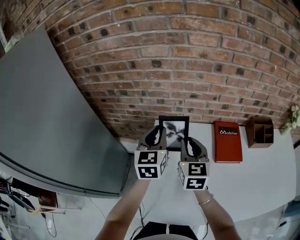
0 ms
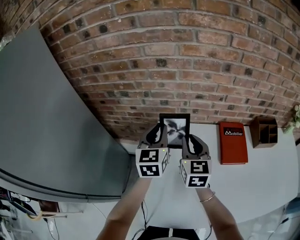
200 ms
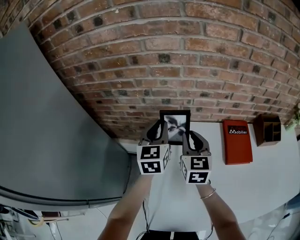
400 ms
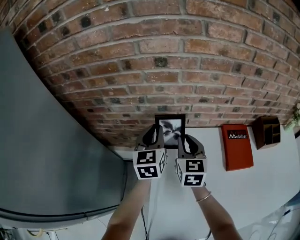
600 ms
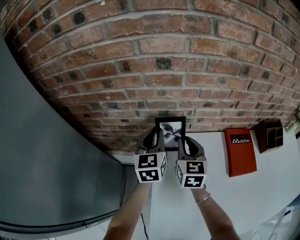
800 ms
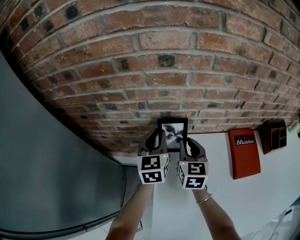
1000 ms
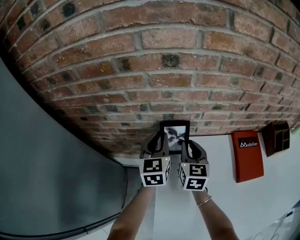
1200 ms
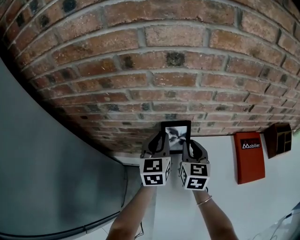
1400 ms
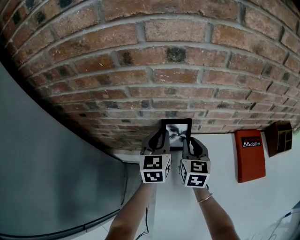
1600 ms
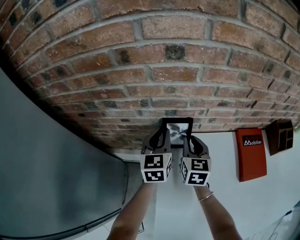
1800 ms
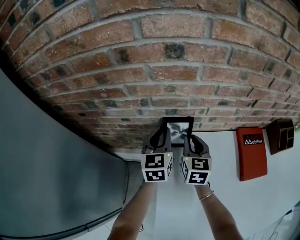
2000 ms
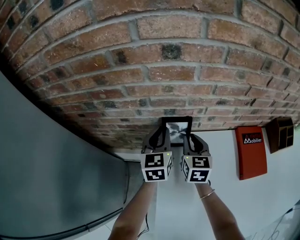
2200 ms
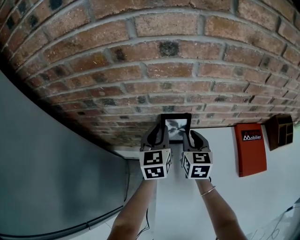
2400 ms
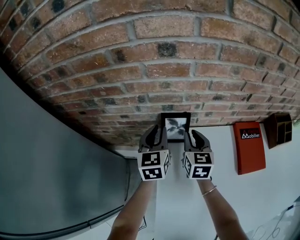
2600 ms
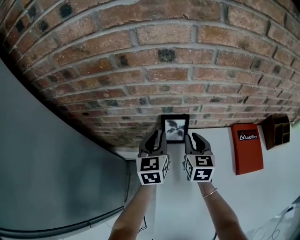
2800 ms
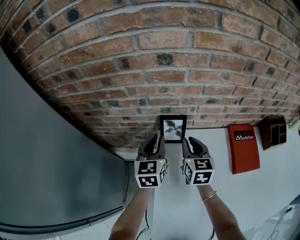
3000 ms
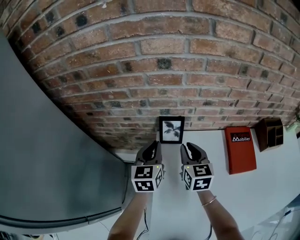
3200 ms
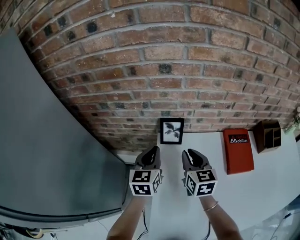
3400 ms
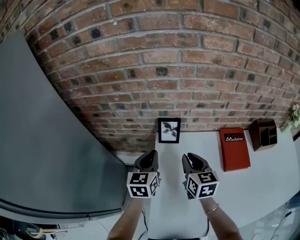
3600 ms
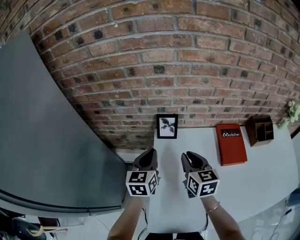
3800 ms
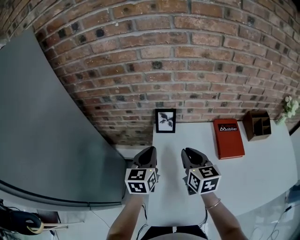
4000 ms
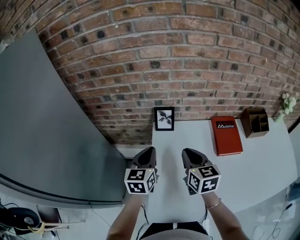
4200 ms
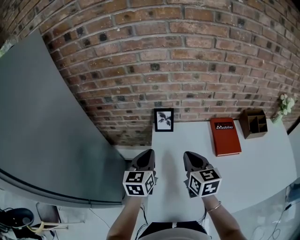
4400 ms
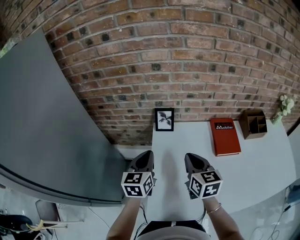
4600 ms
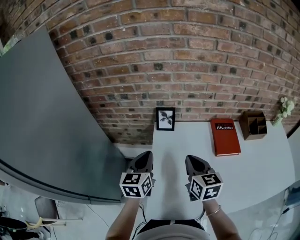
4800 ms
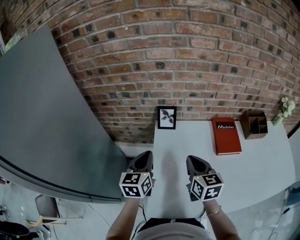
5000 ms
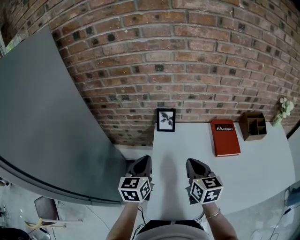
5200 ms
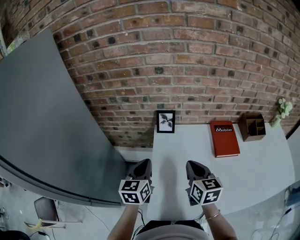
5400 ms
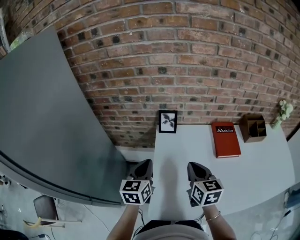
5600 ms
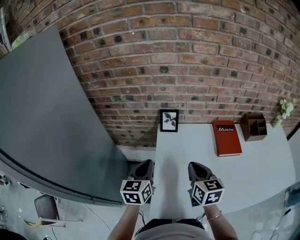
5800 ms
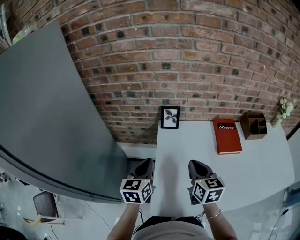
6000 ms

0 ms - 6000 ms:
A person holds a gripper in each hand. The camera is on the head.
0 ms - 1600 ms: The grippers both shift forward and downward by about 25 cm.
1600 ms - 3000 ms: The right gripper shifts by about 5 cm. Meanwhile the left gripper heads backward, covering roughly 5 cm.
3000 ms - 4400 ms: The left gripper heads backward, covering approximately 20 cm. The right gripper is displaced backward and upward by roughly 20 cm.
4400 ms - 6000 ms: The grippers both shift backward by some 5 cm.

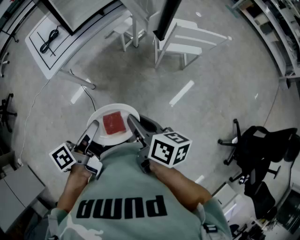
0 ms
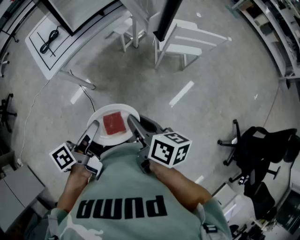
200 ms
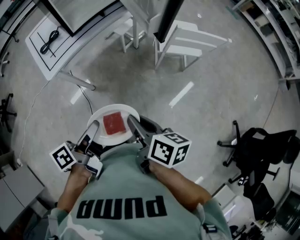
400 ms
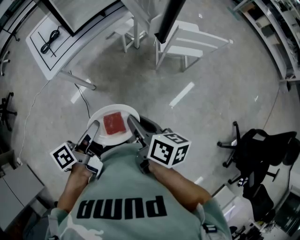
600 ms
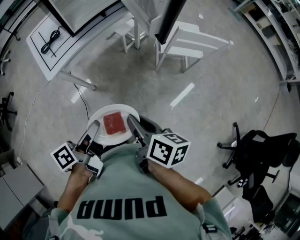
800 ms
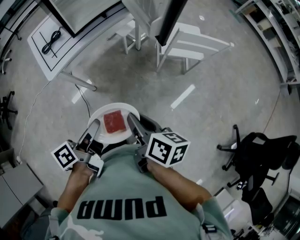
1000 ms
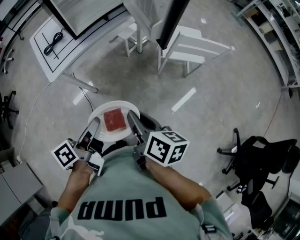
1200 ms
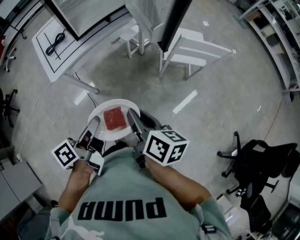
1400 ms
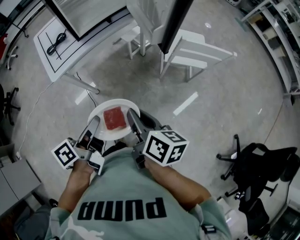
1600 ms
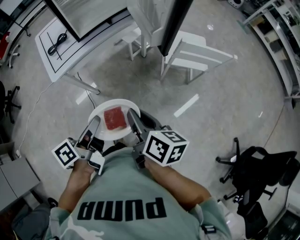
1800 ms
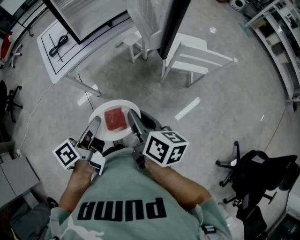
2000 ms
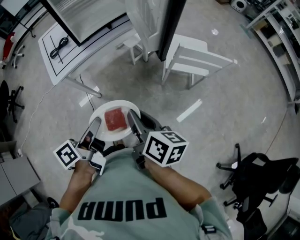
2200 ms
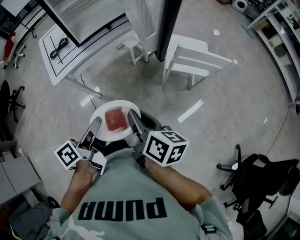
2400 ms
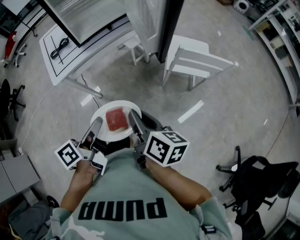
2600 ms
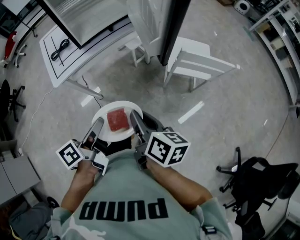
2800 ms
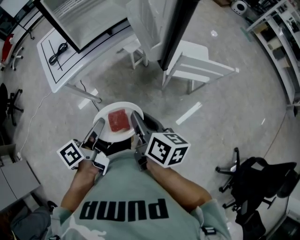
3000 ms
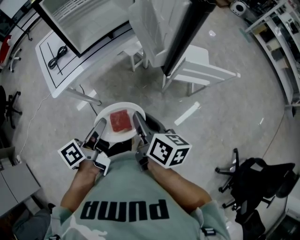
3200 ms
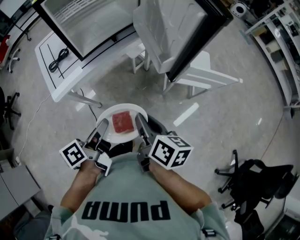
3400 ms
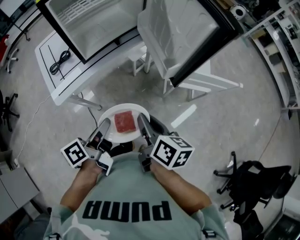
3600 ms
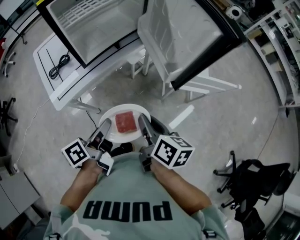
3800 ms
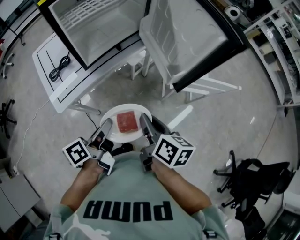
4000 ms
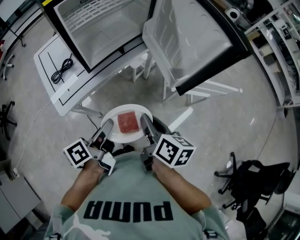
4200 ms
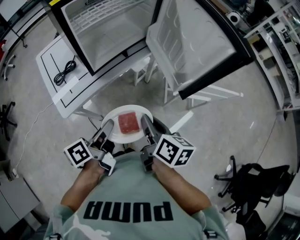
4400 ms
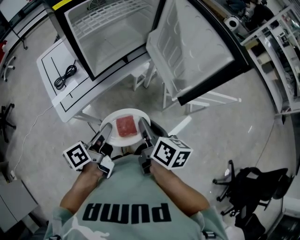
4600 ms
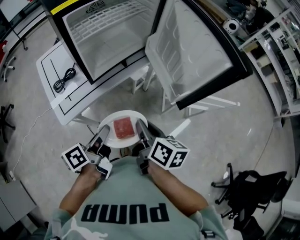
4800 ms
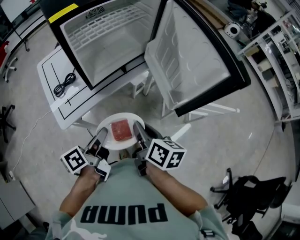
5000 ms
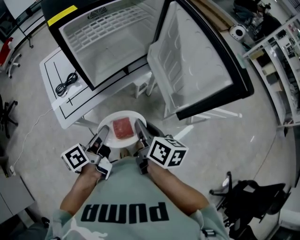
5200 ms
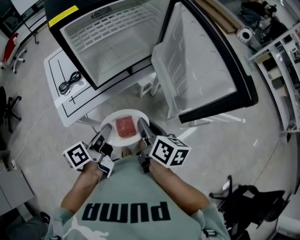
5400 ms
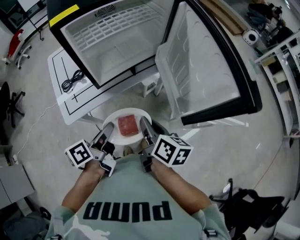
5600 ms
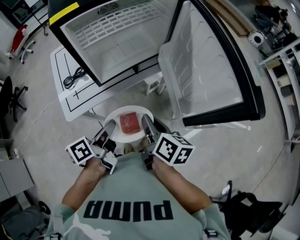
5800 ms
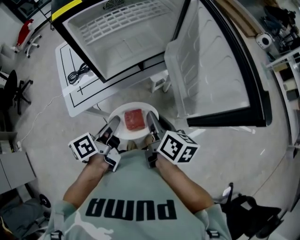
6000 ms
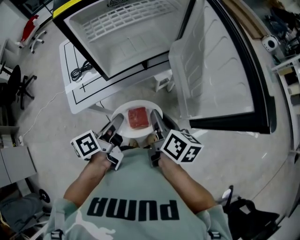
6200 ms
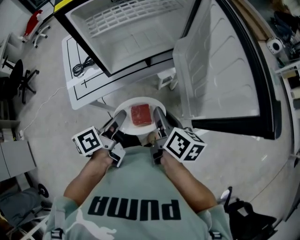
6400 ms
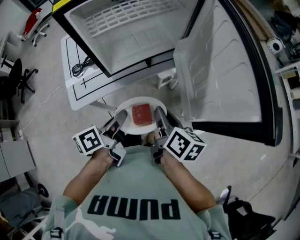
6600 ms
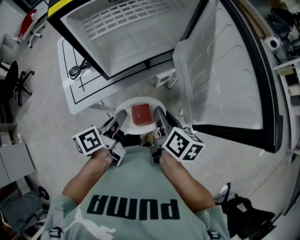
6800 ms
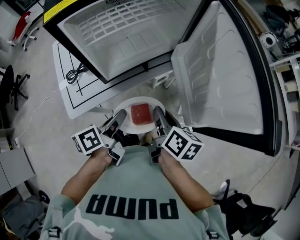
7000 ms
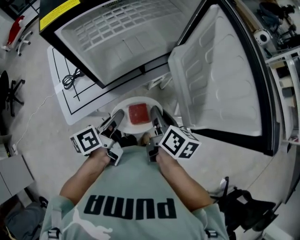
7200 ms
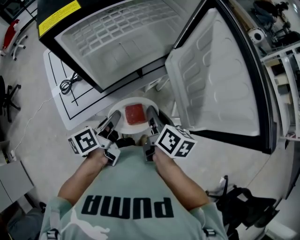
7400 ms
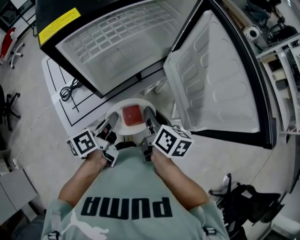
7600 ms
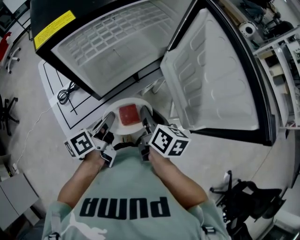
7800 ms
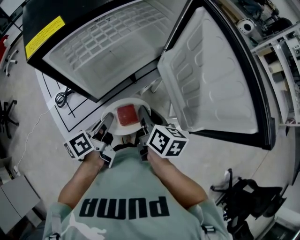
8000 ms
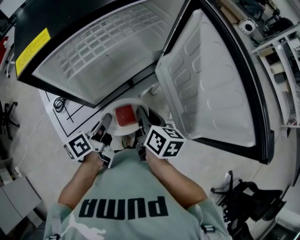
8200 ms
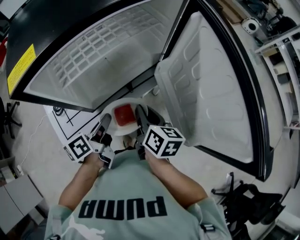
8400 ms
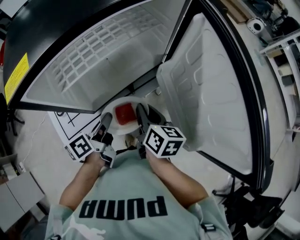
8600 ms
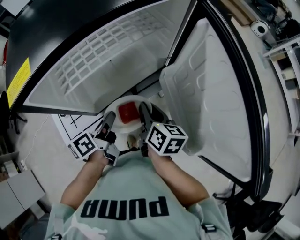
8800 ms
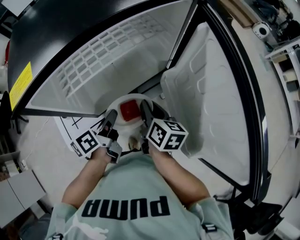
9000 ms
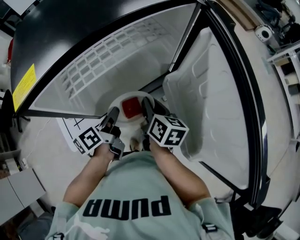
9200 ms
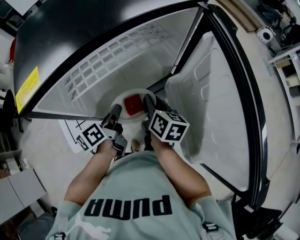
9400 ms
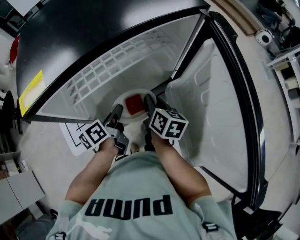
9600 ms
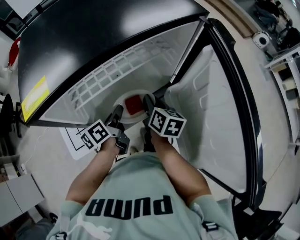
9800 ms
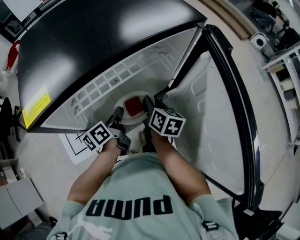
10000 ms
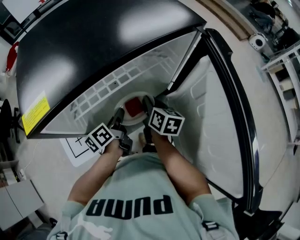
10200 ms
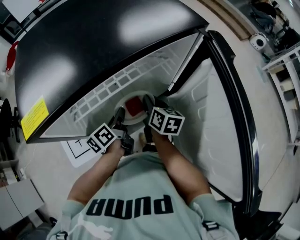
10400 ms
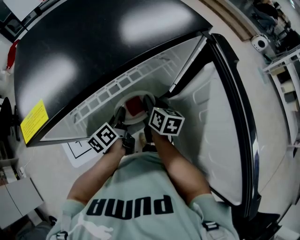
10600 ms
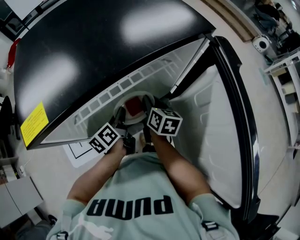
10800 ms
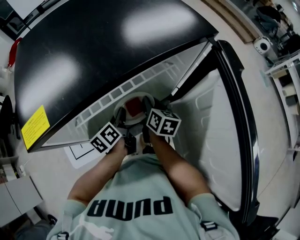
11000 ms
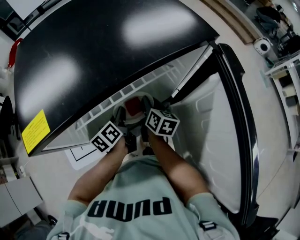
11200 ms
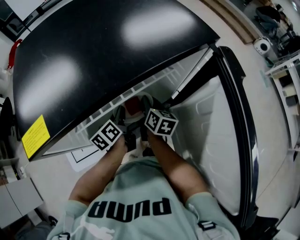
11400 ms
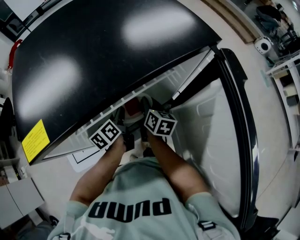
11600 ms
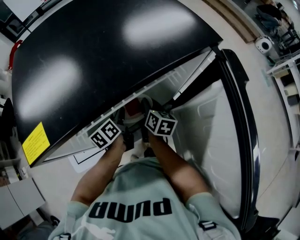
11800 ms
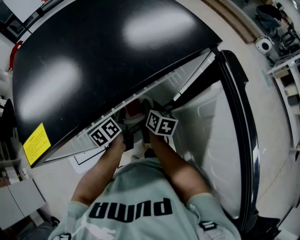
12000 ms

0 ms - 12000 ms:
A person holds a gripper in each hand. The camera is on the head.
0 ms - 1600 ms: The right gripper goes approximately 5 cm forward; the left gripper ends up about 5 cm from where it was.
1600 ms - 3000 ms: The two grippers go approximately 5 cm forward.
3000 ms - 4400 ms: Both grippers move forward and to the left, roughly 15 cm.
4400 ms - 6000 ms: The two grippers go roughly 10 cm forward.
6000 ms - 7600 ms: The right gripper moves forward, some 10 cm, while the left gripper shifts some 10 cm forward and to the left.
7600 ms - 9000 ms: Both grippers move forward, approximately 10 cm.
9000 ms - 10400 ms: Both grippers travel together forward, some 10 cm.
10400 ms - 12000 ms: The right gripper moves approximately 5 cm. The left gripper heads forward, covering about 5 cm.

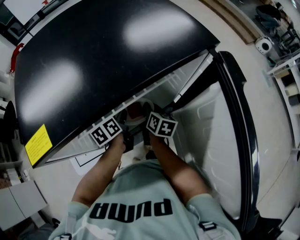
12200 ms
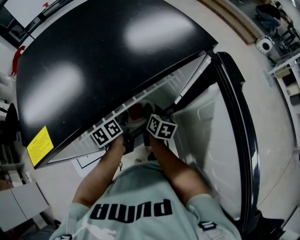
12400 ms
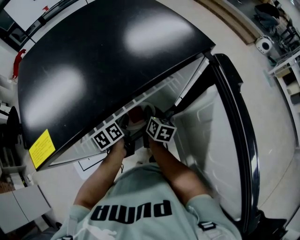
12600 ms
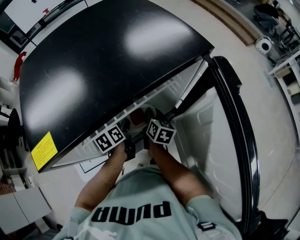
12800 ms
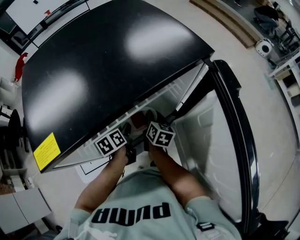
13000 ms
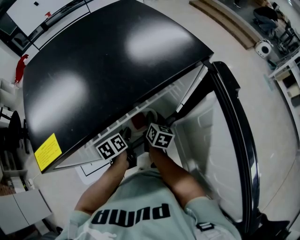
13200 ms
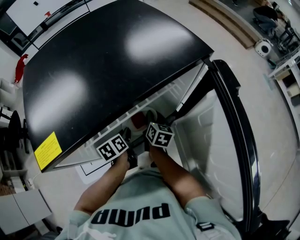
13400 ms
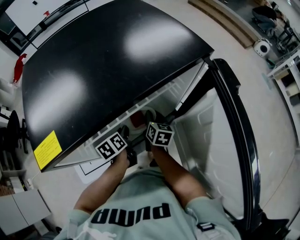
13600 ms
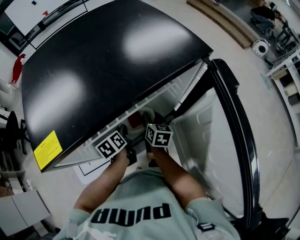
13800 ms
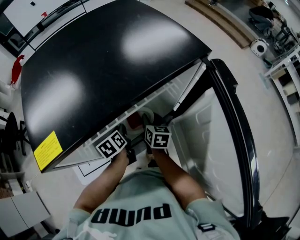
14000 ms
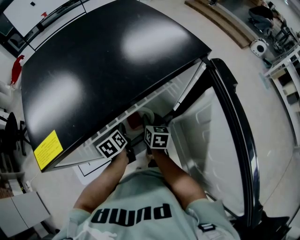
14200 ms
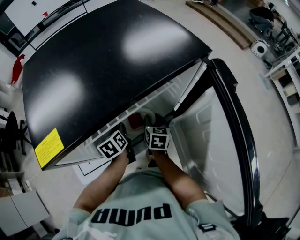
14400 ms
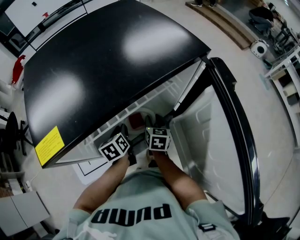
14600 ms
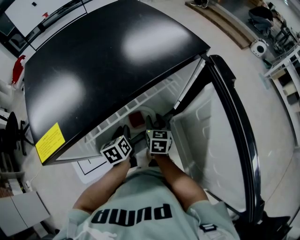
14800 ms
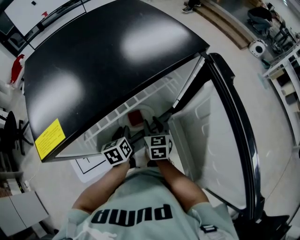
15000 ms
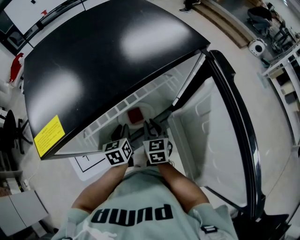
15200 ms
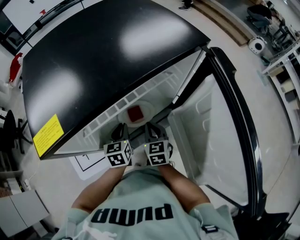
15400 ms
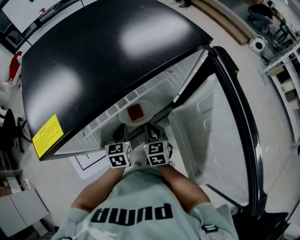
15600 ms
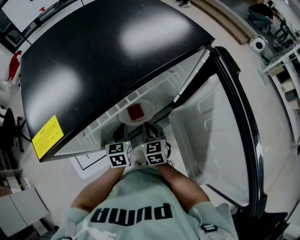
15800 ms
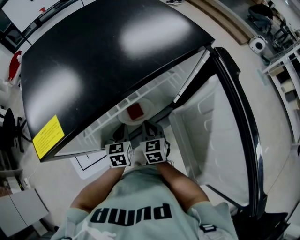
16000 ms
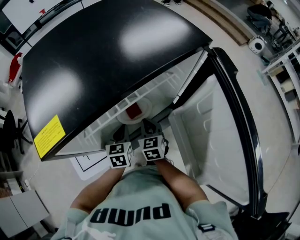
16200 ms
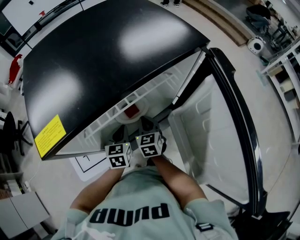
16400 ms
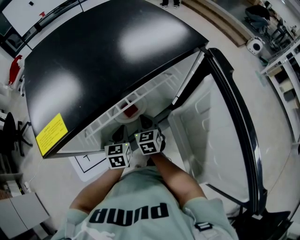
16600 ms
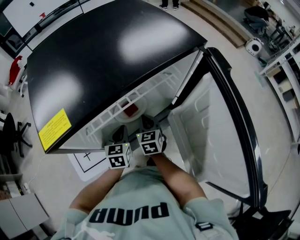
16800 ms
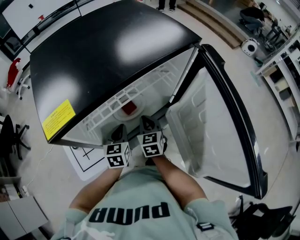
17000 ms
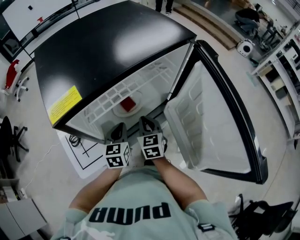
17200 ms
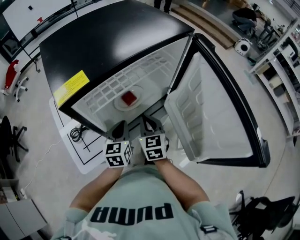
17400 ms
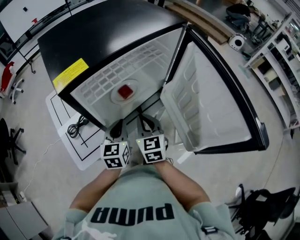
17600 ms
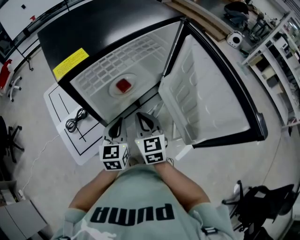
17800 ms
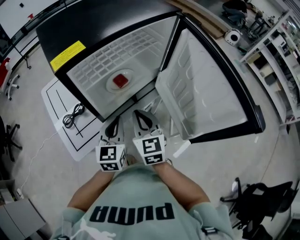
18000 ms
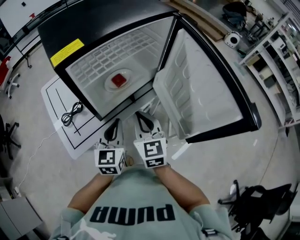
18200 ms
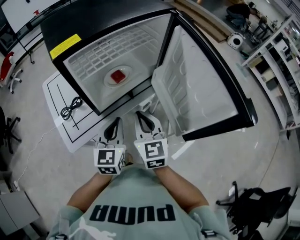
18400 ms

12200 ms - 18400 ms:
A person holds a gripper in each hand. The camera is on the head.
12200 ms - 13800 ms: The grippers make only small movements.
13800 ms - 15400 ms: The left gripper changes its angle by about 30 degrees, while the right gripper travels backward by some 10 cm, swivels approximately 30 degrees, and closes its fingers.
15400 ms - 16800 ms: The grippers move only a little.
16800 ms - 18400 ms: The grippers both shift backward and upward by approximately 25 cm. The left gripper changes its angle by some 20 degrees.
